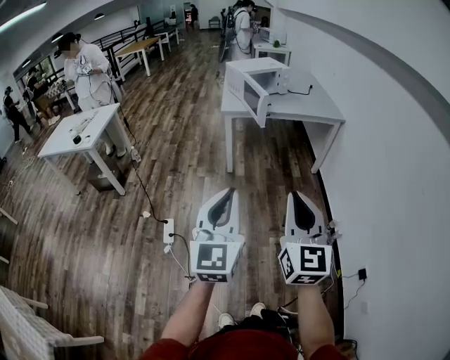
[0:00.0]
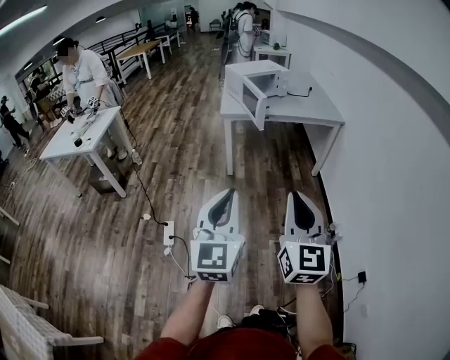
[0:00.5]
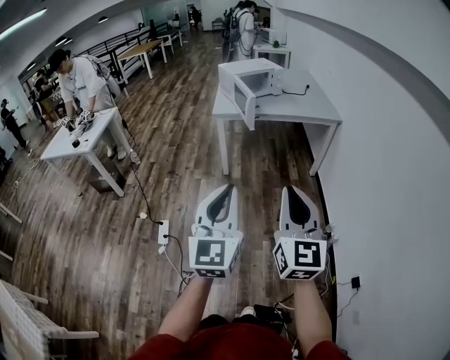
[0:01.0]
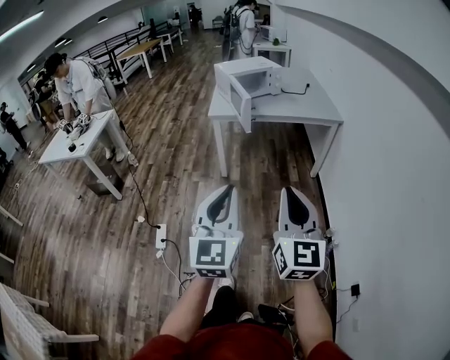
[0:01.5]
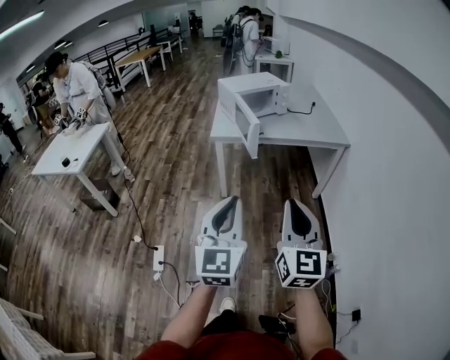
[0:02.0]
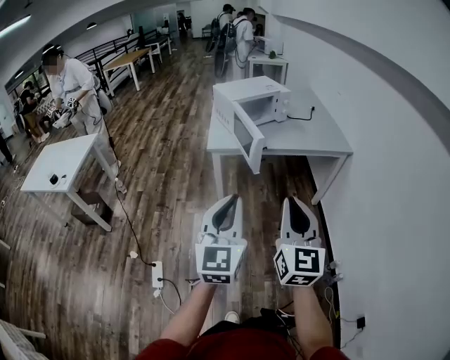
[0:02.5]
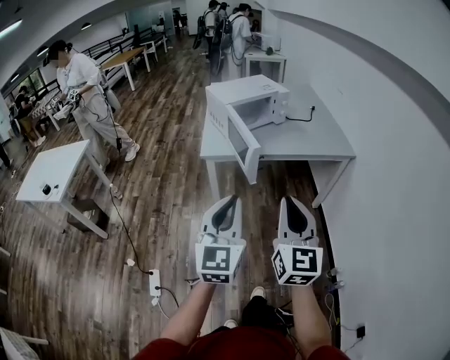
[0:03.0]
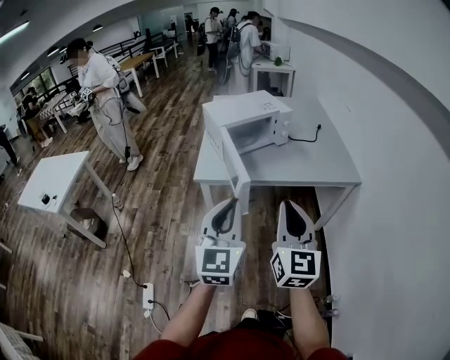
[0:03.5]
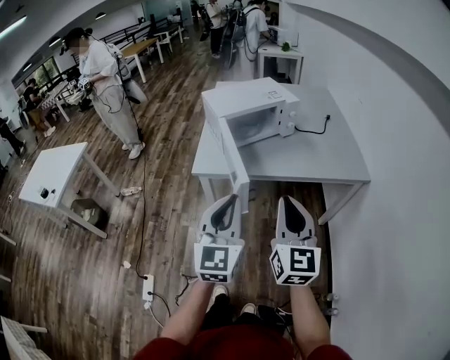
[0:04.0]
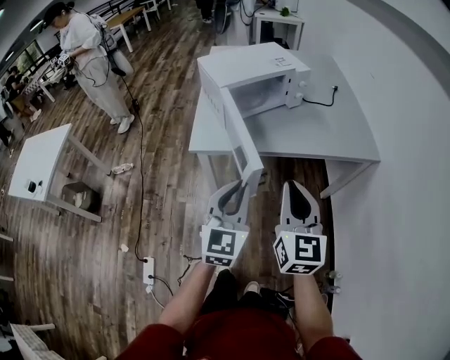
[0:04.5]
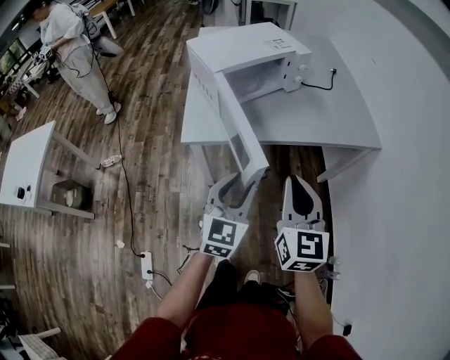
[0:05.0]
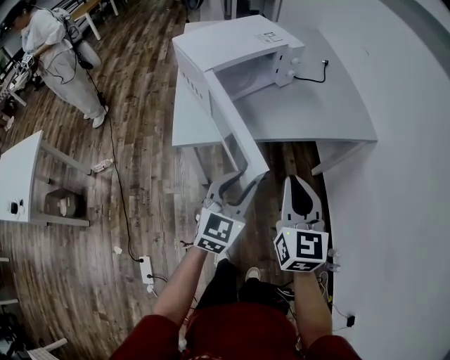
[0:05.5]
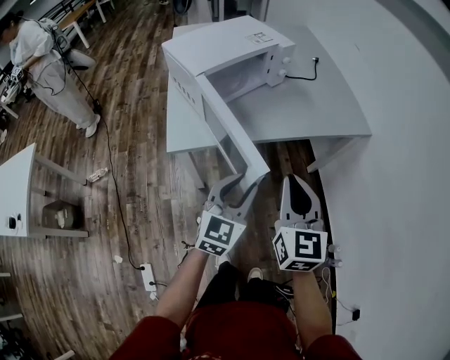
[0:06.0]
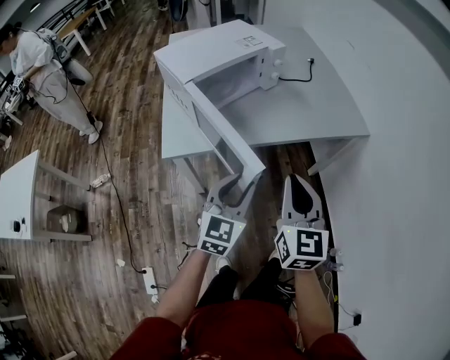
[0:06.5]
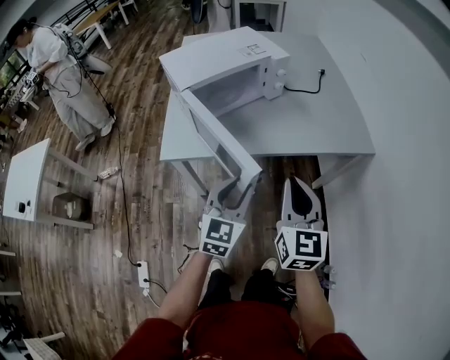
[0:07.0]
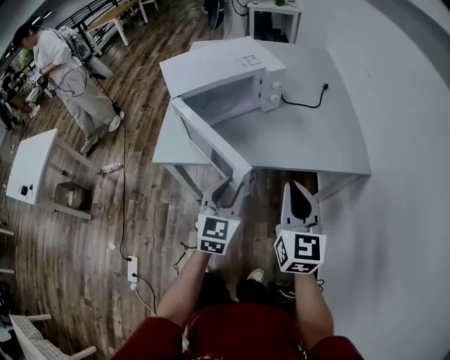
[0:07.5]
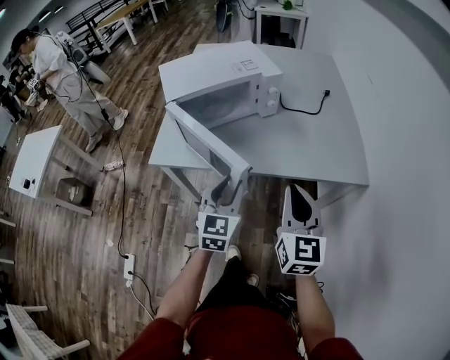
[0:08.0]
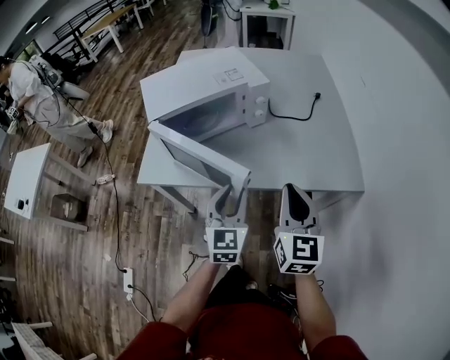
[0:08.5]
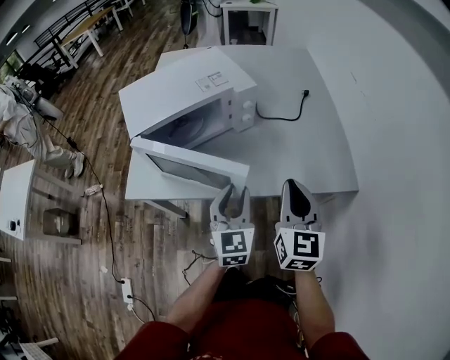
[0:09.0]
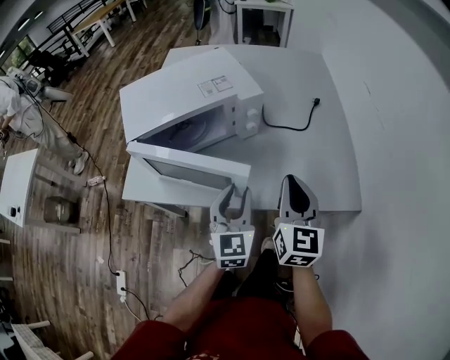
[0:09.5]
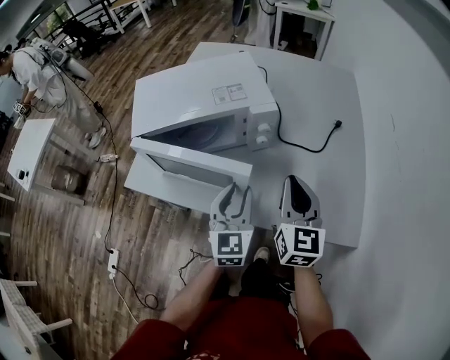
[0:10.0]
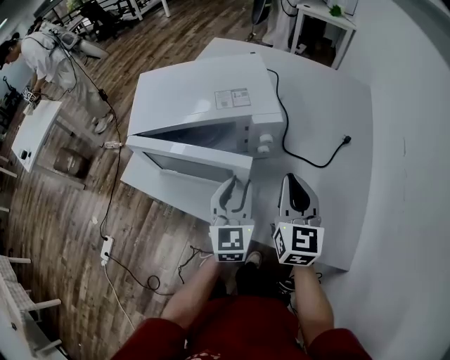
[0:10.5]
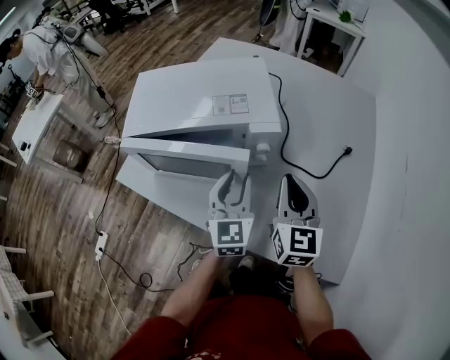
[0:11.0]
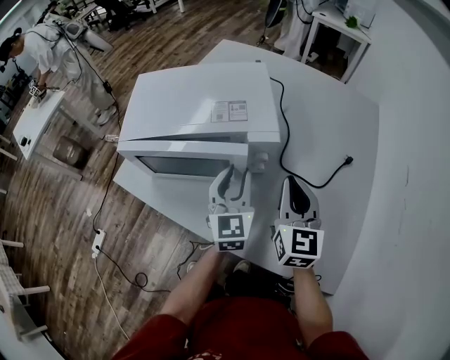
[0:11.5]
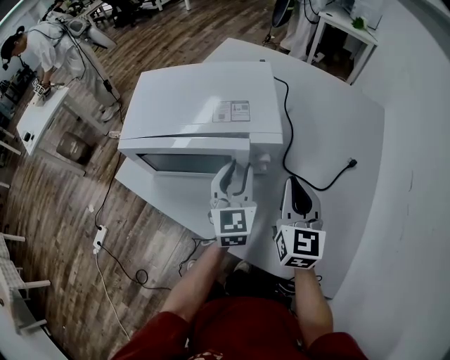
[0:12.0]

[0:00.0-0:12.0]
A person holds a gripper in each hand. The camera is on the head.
0:00.0 to 0:02.0: The two grippers go about 20 cm forward.
0:02.0 to 0:04.0: Both grippers are carried forward, about 40 cm.
0:04.0 to 0:06.0: The right gripper heads downward, forward and to the left, covering about 15 cm. The left gripper is displaced downward and forward by approximately 20 cm, turns by approximately 30 degrees, and opens up.
0:06.0 to 0:08.0: The left gripper shifts approximately 20 cm forward and to the right, and turns by some 30 degrees; the right gripper shifts some 25 cm to the right and forward.
0:08.0 to 0:10.0: The right gripper is displaced forward by about 25 cm; the left gripper is displaced forward and to the right by approximately 20 cm.
0:10.0 to 0:12.0: The grippers both shift forward by some 15 cm.

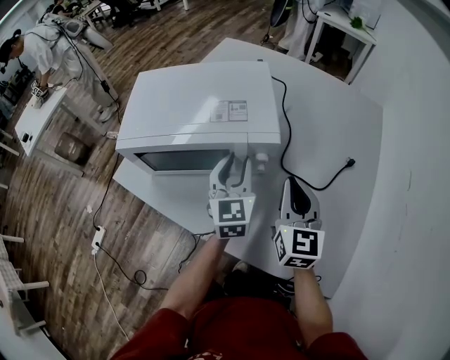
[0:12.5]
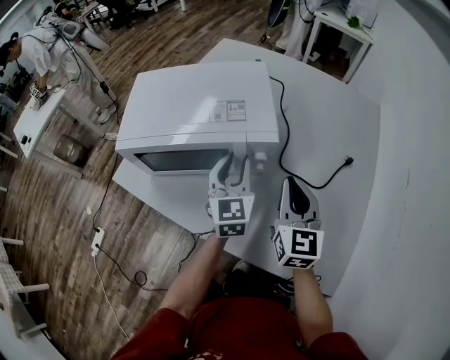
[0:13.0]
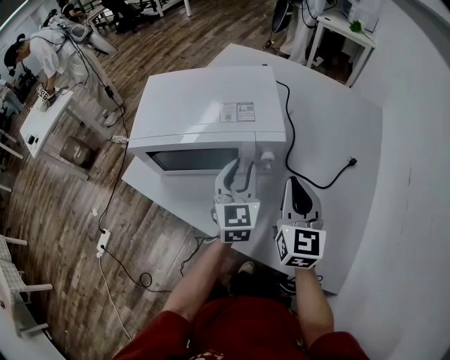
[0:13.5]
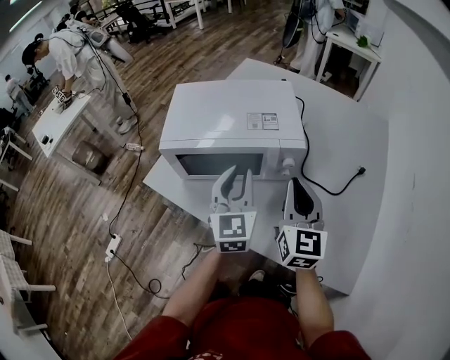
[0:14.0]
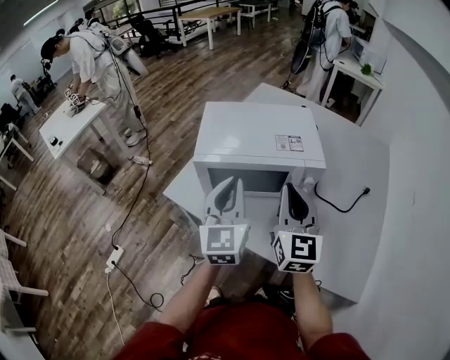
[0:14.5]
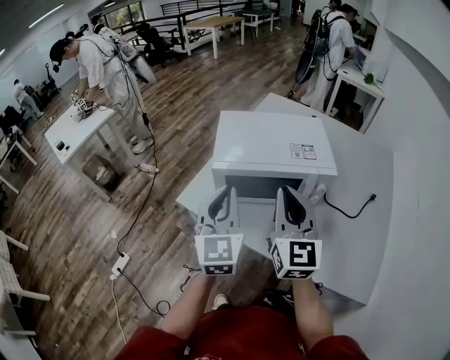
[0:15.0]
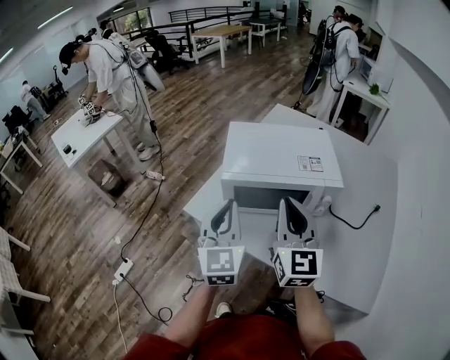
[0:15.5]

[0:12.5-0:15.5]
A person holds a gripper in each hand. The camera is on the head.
0:12.5 to 0:14.0: The left gripper heads to the left, upward and backward, covering approximately 15 cm, while the right gripper moves to the left and upward, some 10 cm.
0:14.0 to 0:15.5: The right gripper moves to the left and upward, about 20 cm. Meanwhile the left gripper heads to the left, covering some 20 cm.

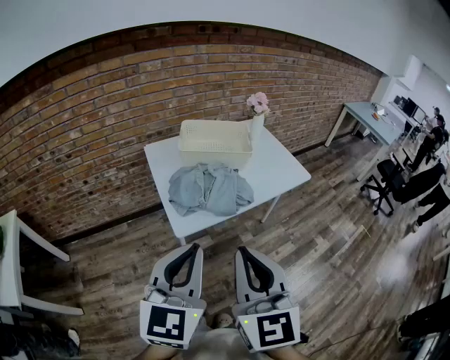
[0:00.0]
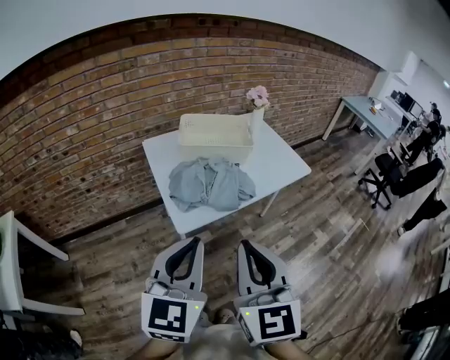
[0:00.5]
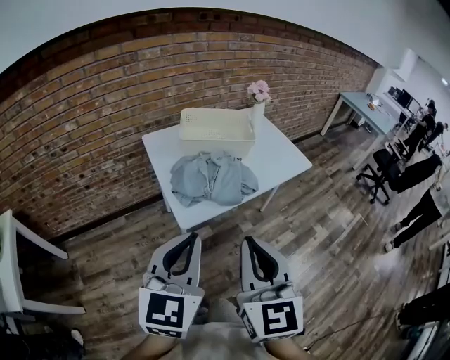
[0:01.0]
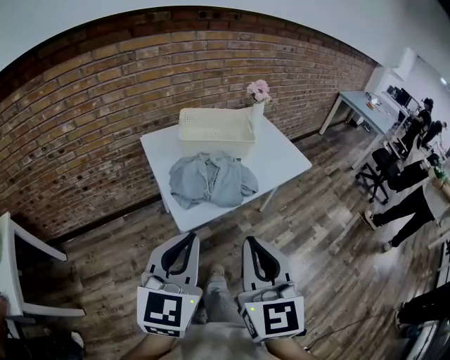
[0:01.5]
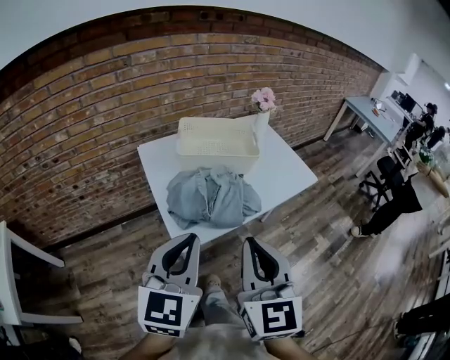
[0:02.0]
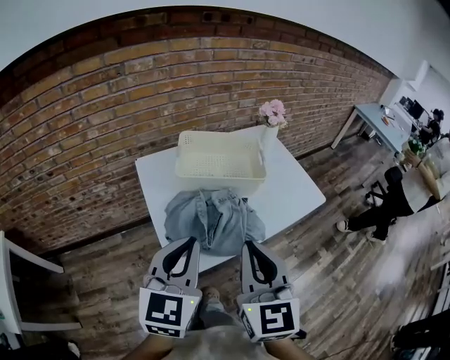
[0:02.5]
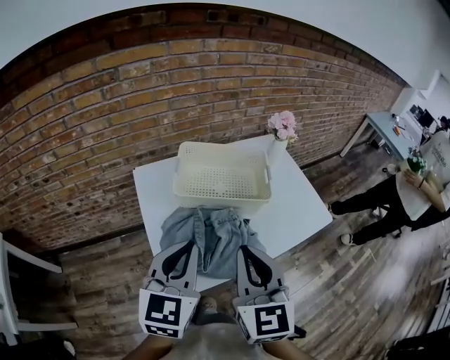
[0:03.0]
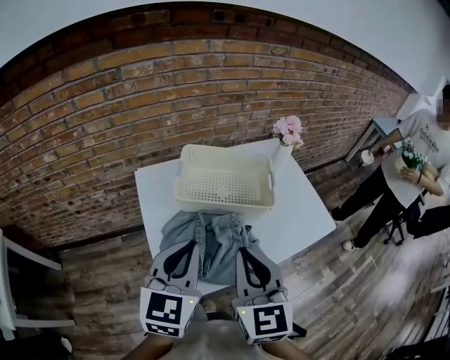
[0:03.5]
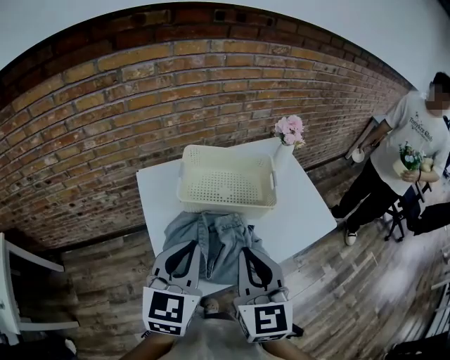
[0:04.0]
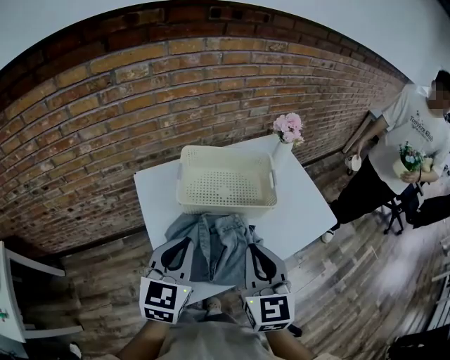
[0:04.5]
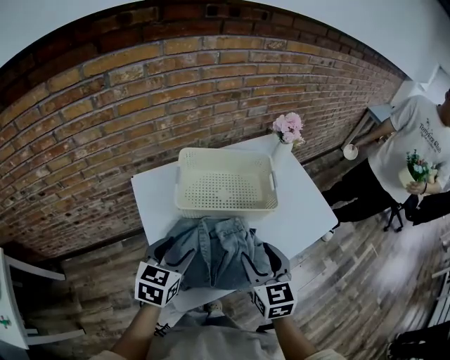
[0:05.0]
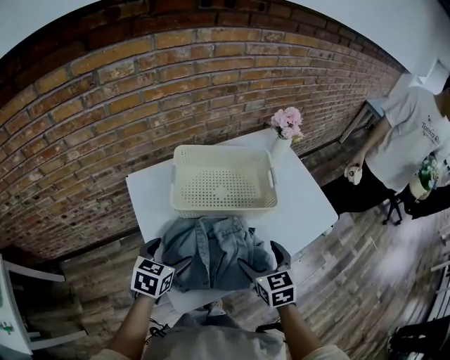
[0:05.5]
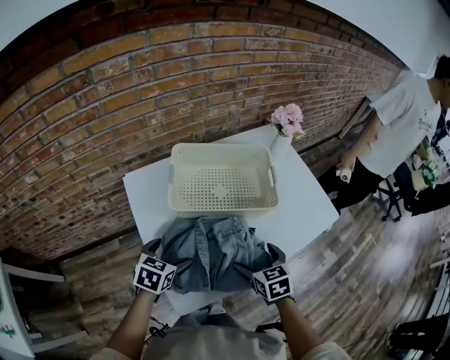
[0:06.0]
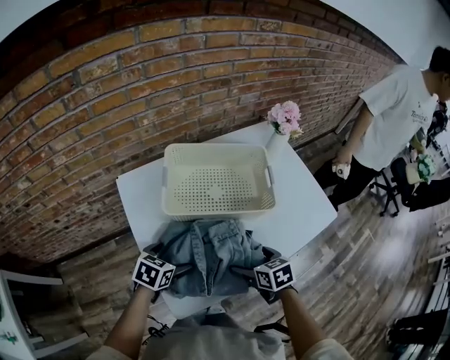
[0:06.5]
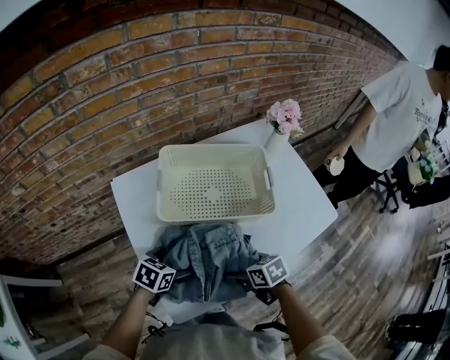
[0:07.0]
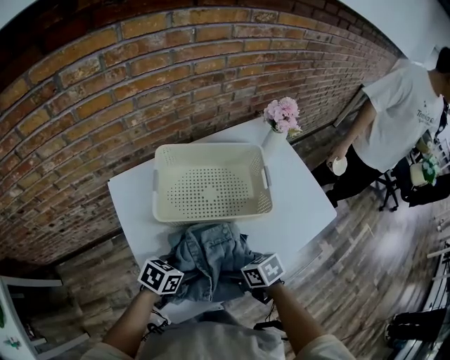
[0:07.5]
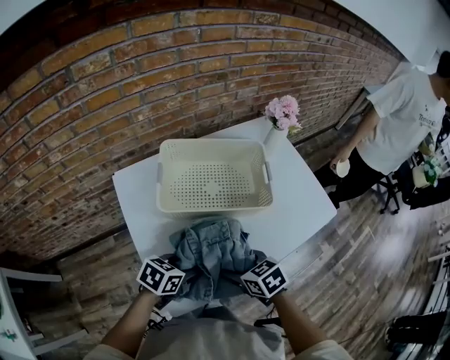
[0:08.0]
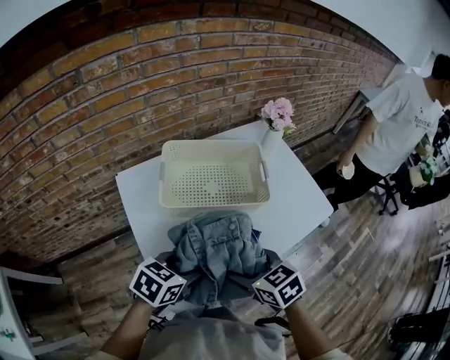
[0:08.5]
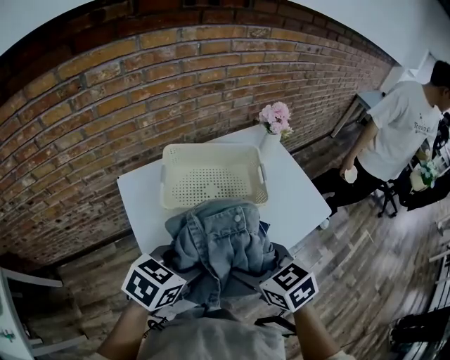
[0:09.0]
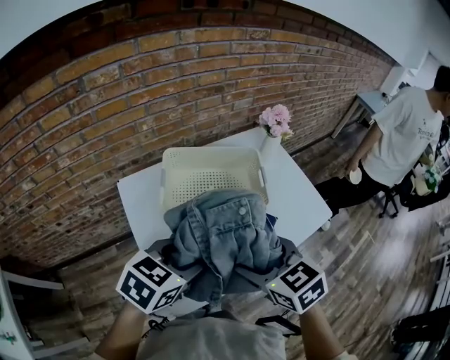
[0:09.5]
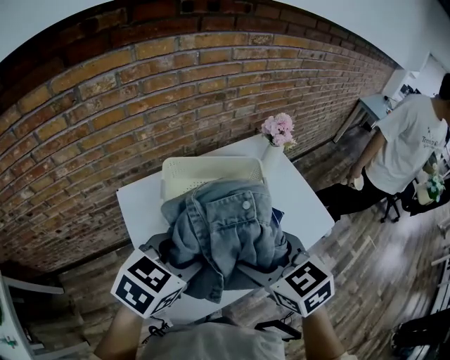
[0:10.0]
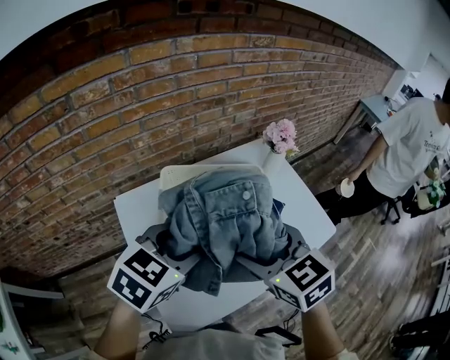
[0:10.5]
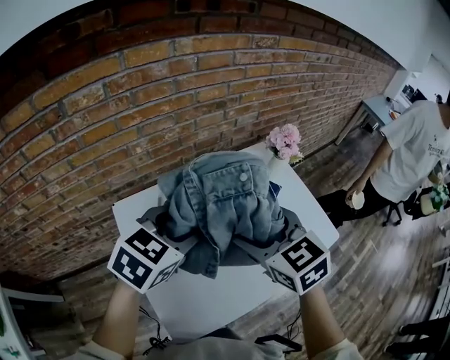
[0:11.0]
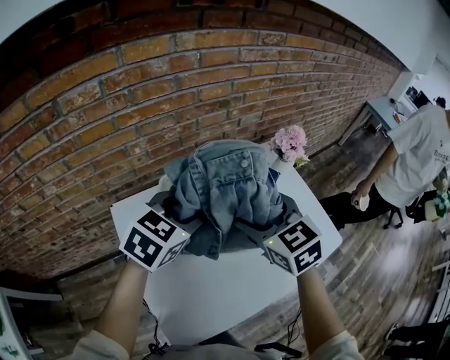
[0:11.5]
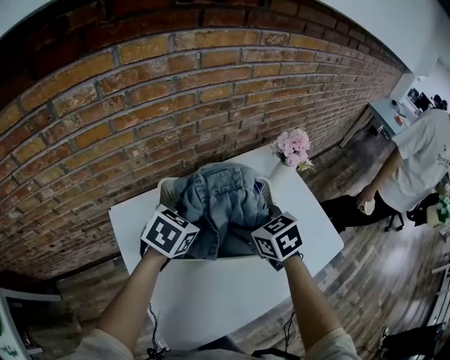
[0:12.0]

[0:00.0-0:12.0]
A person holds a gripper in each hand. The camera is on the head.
0:00.0 to 0:02.0: Both grippers travel together forward, some 10 cm.
0:02.0 to 0:04.0: Both grippers travel together forward, roughly 20 cm.
0:04.0 to 0:06.0: The grippers both shift downward by roughly 25 cm. The right gripper angles its fingers downward, by approximately 30 degrees, and opens, while the left gripper points its fingers some 30 degrees further downward, and opens up.
0:06.0 to 0:08.0: The right gripper moves approximately 5 cm, and rotates approximately 20 degrees. Meanwhile the left gripper ends up approximately 10 cm from where it was, turns by about 20 degrees, and closes.
0:08.0 to 0:10.0: The grippers both shift upward by roughly 20 cm. The left gripper changes its angle by roughly 30 degrees. The right gripper turns by approximately 30 degrees.
0:10.0 to 0:12.0: Both grippers move forward and downward, approximately 25 cm.
